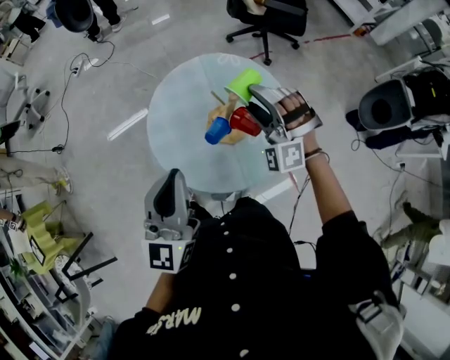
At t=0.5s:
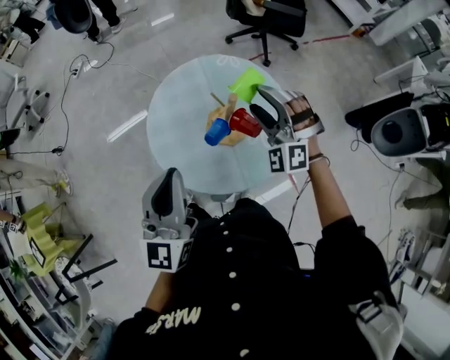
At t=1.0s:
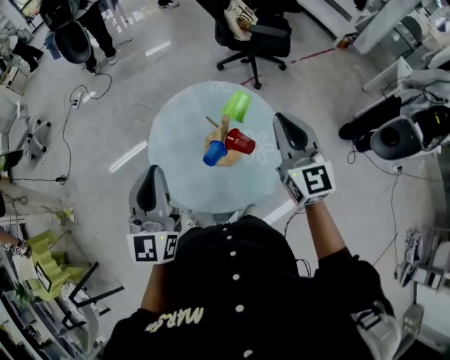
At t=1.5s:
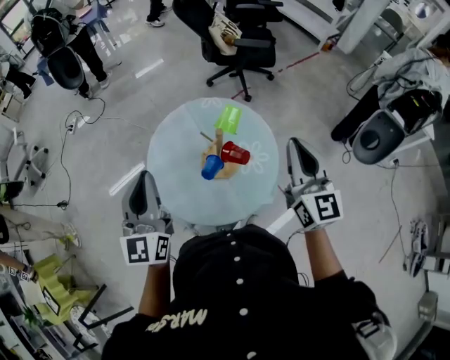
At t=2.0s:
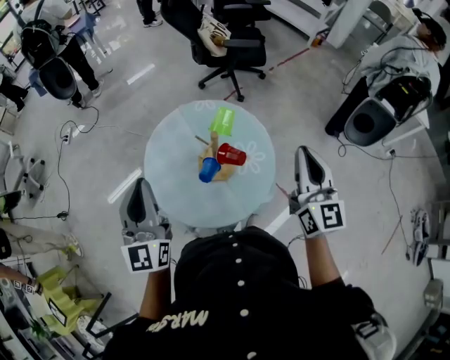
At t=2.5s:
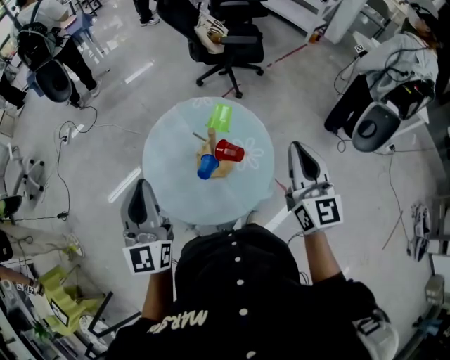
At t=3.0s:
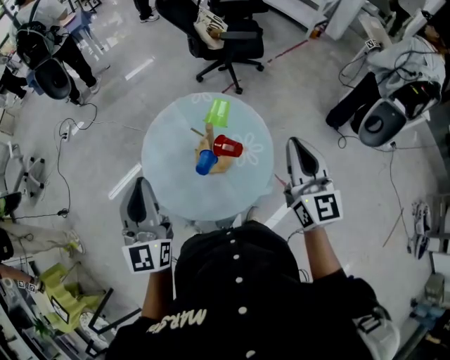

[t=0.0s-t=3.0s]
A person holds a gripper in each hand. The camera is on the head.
t=0.0s to t=1.5s: The right gripper shifts roughly 20 cm upward, to the right and backward, rotates around the line of its fingers by about 80 degrees, clockwise from behind, and closes up, while the left gripper moves forward and to the left, some 10 cm.
t=1.5s to t=3.0s: The grippers move only a little.

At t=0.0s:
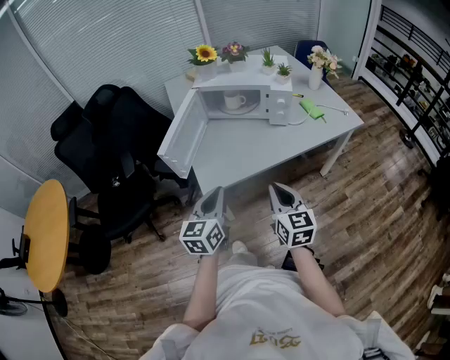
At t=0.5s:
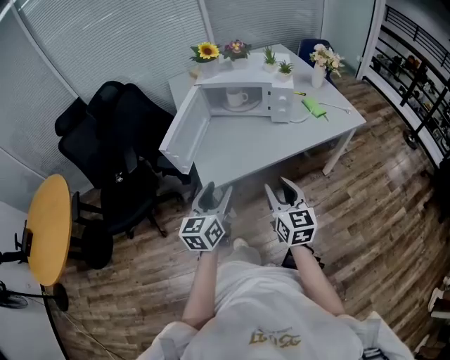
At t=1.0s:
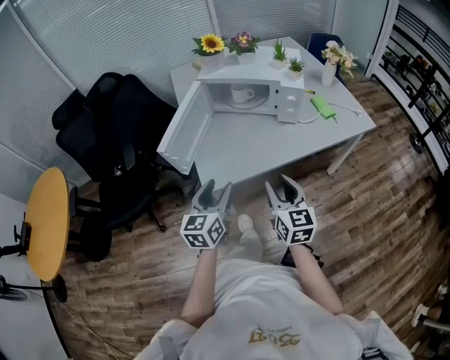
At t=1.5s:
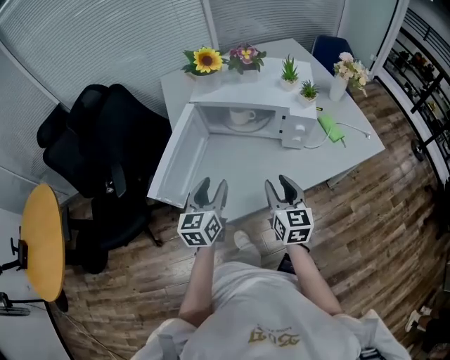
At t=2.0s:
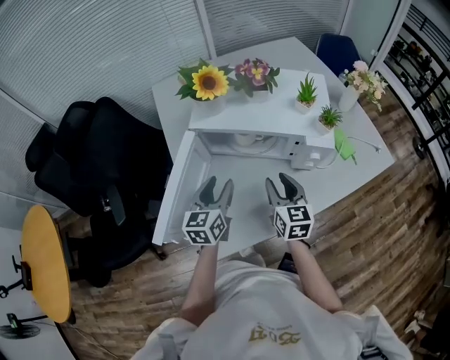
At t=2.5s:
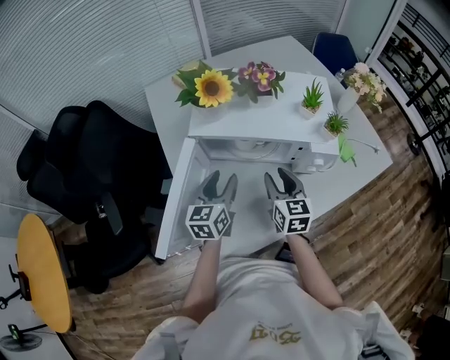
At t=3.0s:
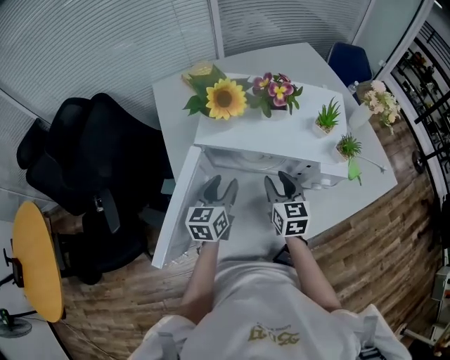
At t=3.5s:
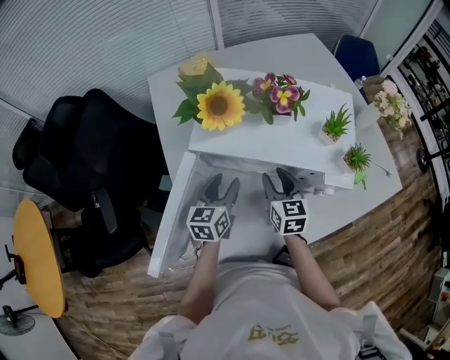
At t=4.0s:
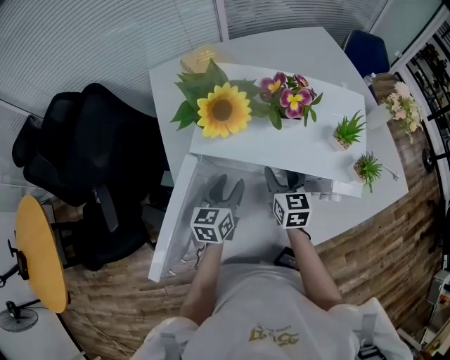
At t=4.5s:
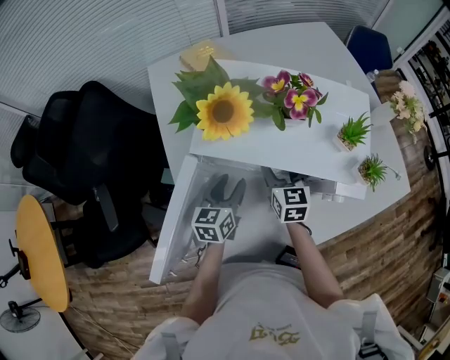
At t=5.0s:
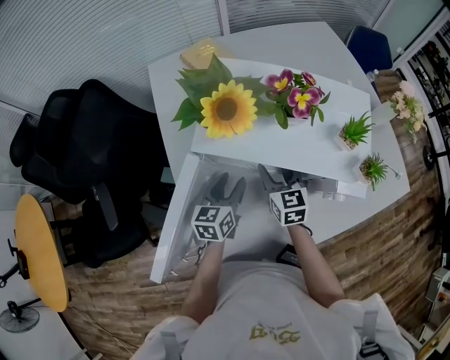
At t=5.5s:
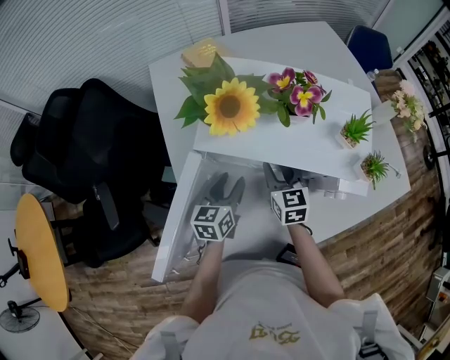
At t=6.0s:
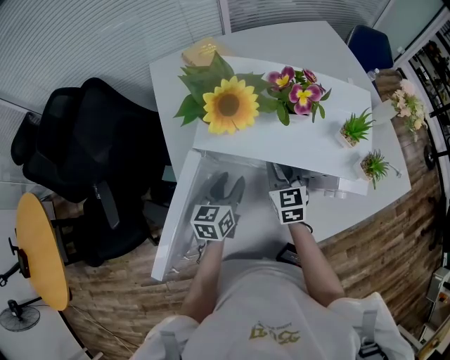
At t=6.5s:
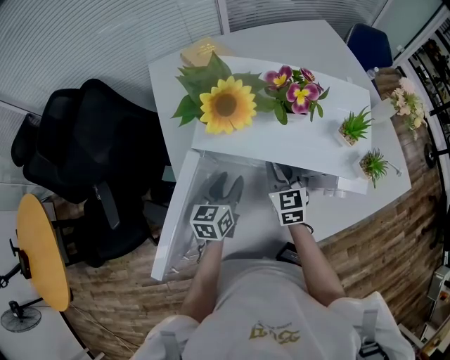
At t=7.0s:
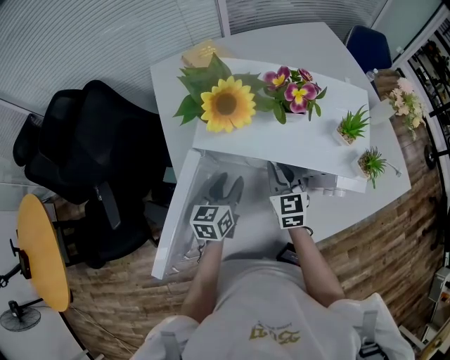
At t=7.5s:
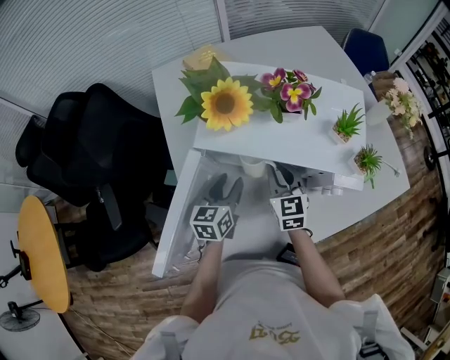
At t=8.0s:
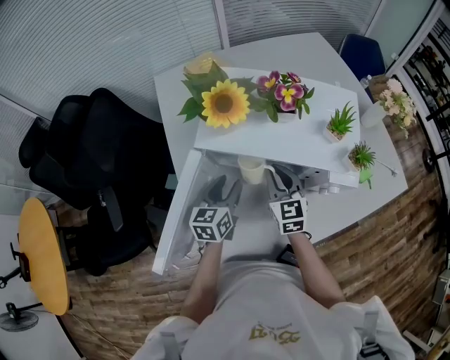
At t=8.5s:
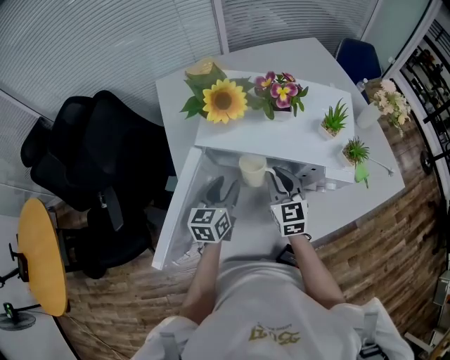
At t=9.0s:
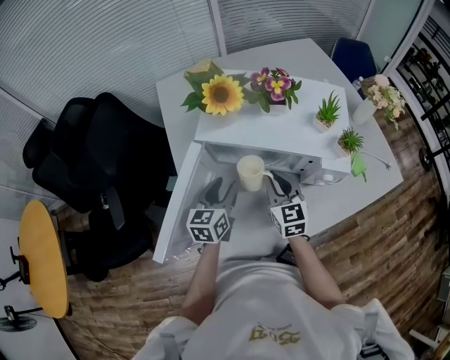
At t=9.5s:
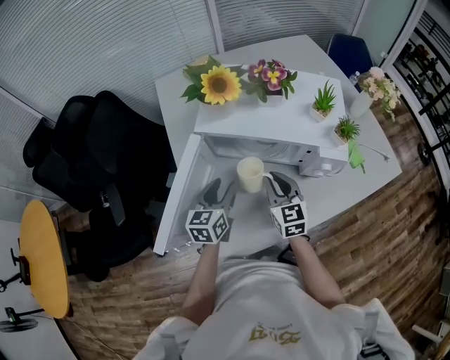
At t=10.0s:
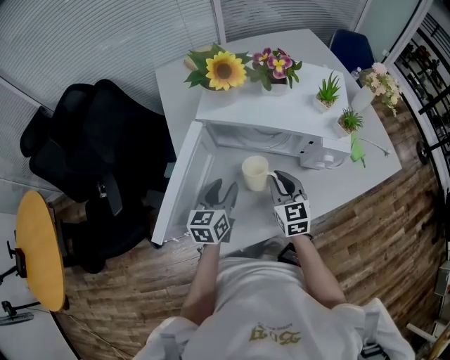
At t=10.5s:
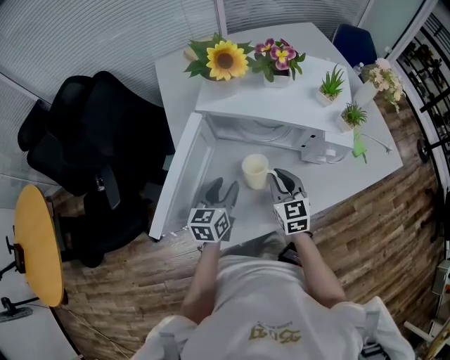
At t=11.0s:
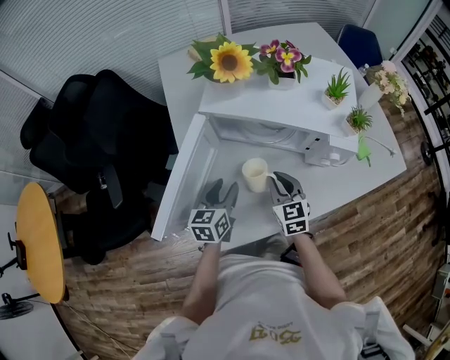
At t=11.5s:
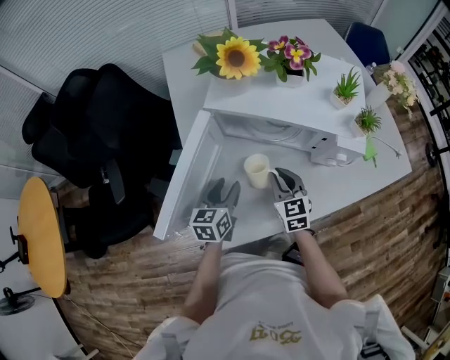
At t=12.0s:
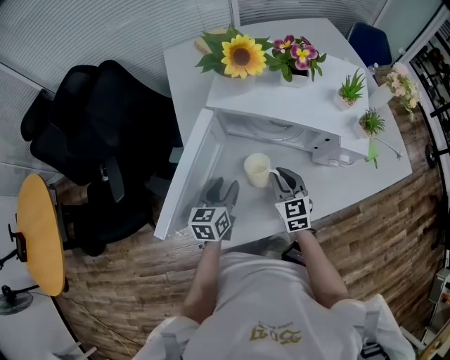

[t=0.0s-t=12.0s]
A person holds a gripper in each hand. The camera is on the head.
t=0.0s to t=2.0s: The two grippers go some 35 cm forward. The right gripper opens up. The left gripper opens its fingers.
t=2.0s to t=4.0s: Both grippers move forward and downward, about 15 cm.
t=4.0s to t=6.0s: The right gripper closes its fingers.
t=6.0s to t=8.0s: The right gripper ends up some 5 cm from where it was.
t=8.0s to t=10.0s: Both grippers travel together backward, approximately 10 cm.
t=10.0s to t=12.0s: The right gripper ends up some 5 cm from where it was. The left gripper ends up some 5 cm from where it was.

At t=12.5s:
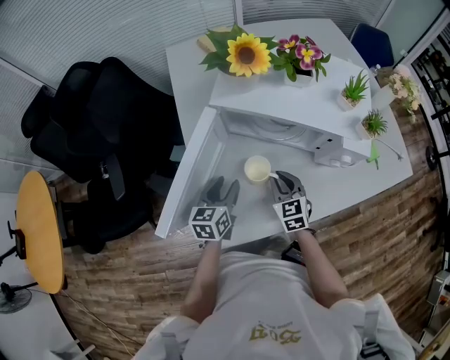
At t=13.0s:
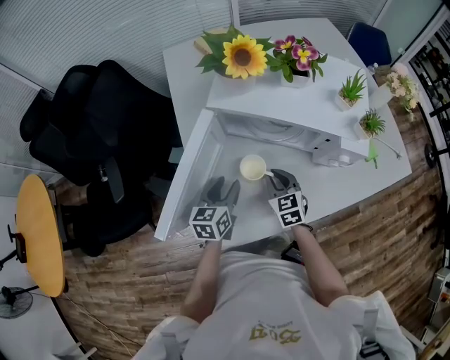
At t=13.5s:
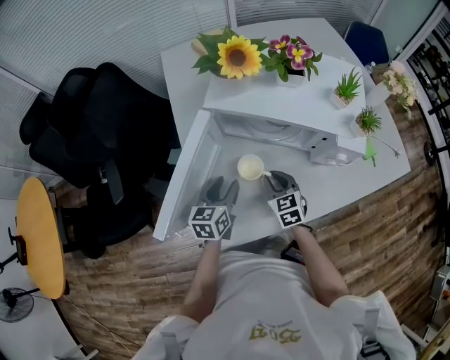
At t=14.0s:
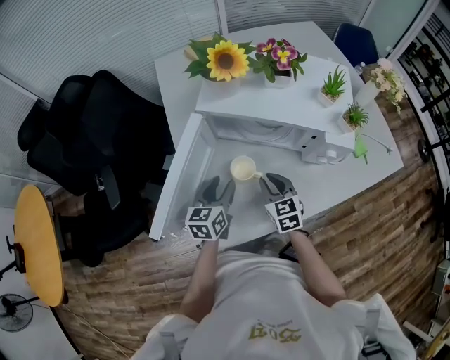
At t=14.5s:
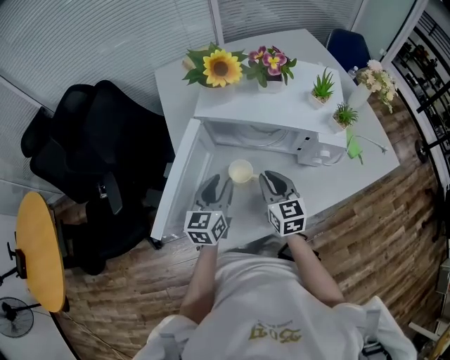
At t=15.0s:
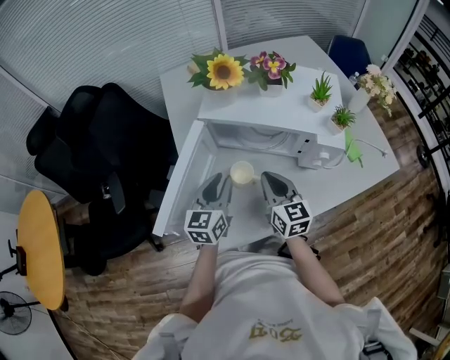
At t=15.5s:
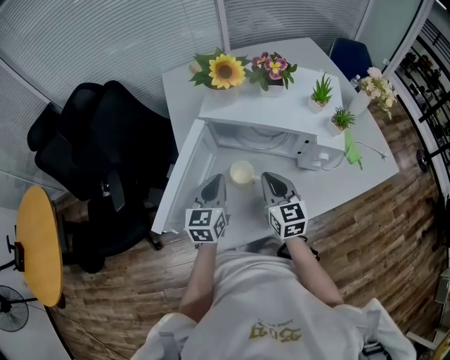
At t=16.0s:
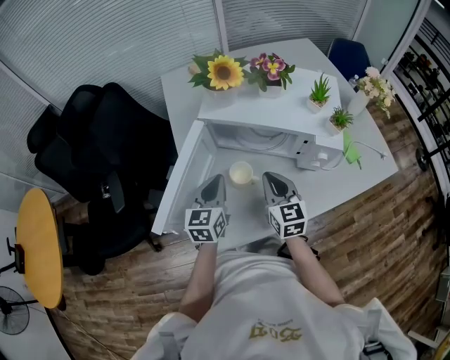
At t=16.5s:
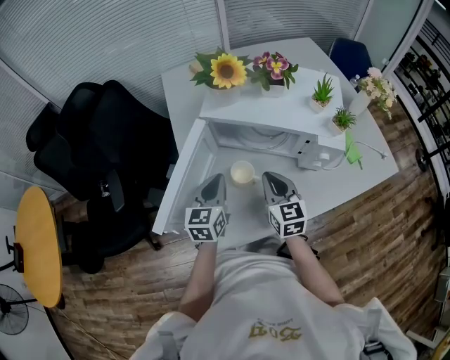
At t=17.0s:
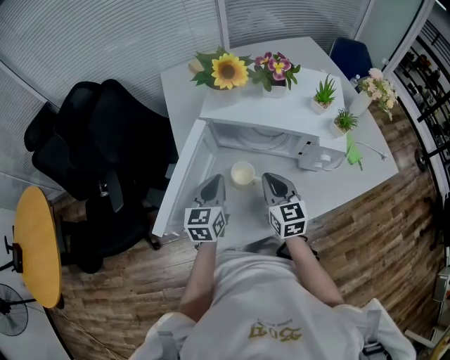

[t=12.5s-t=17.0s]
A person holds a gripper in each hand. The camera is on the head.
t=12.5s to t=14.5s: Both grippers travel together upward, some 10 cm.
t=14.5s to t=17.0s: The left gripper closes its fingers.

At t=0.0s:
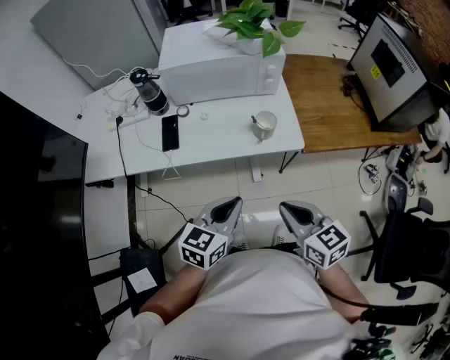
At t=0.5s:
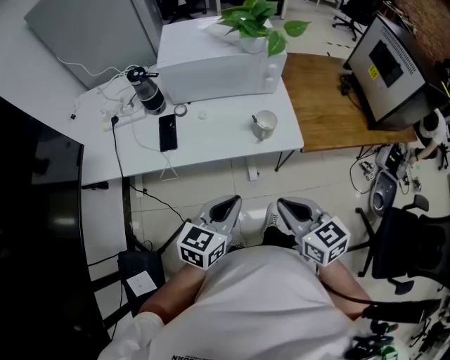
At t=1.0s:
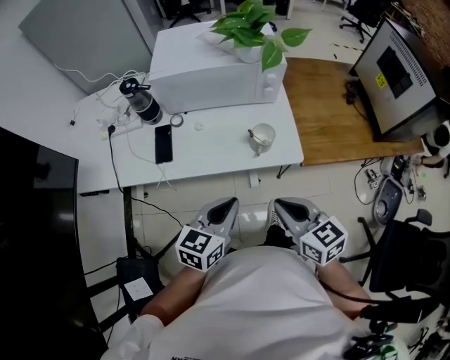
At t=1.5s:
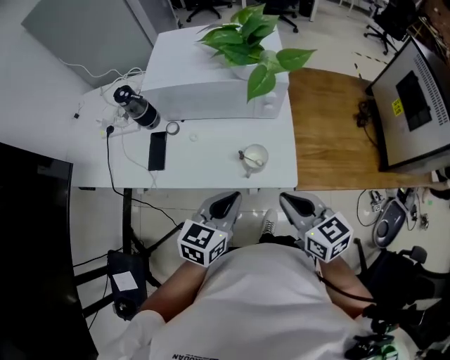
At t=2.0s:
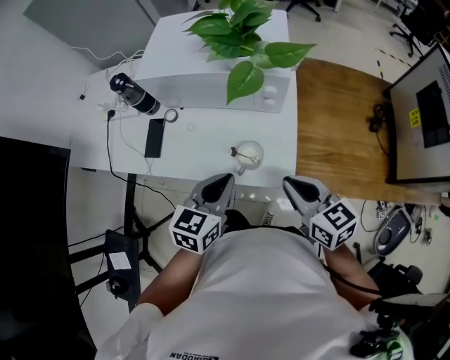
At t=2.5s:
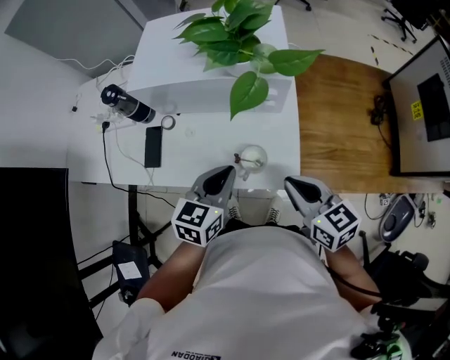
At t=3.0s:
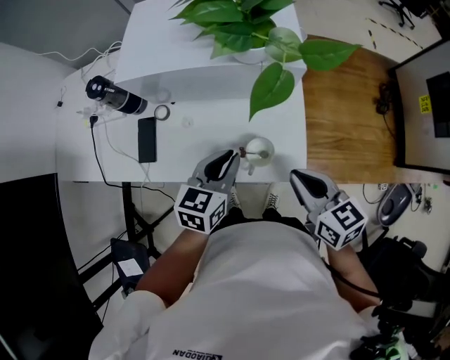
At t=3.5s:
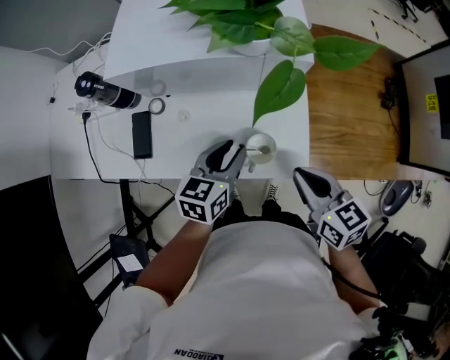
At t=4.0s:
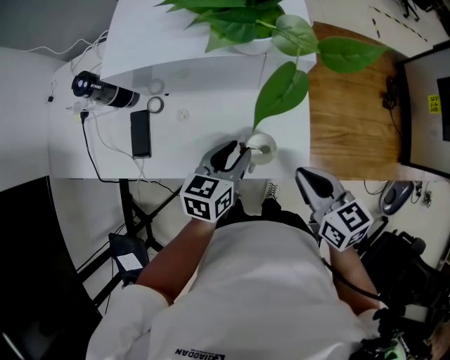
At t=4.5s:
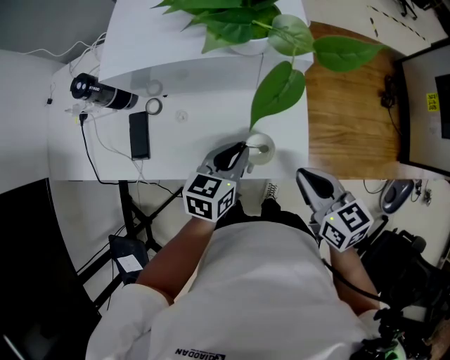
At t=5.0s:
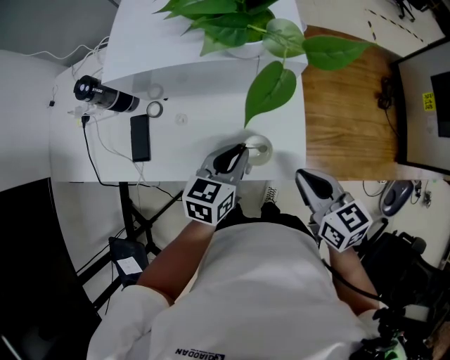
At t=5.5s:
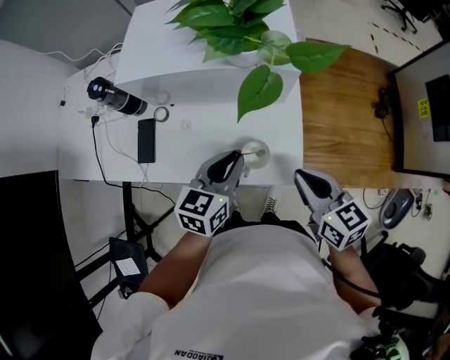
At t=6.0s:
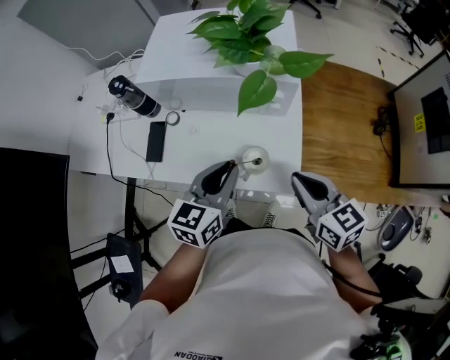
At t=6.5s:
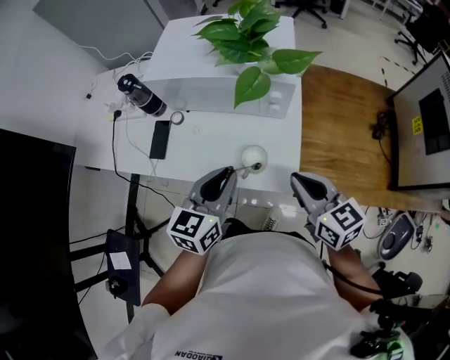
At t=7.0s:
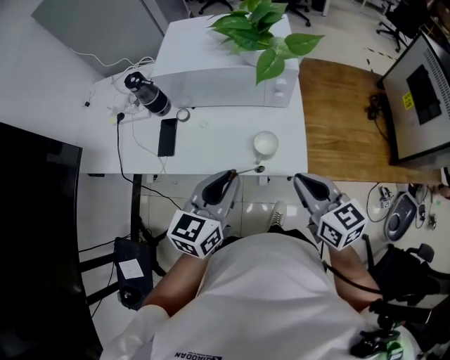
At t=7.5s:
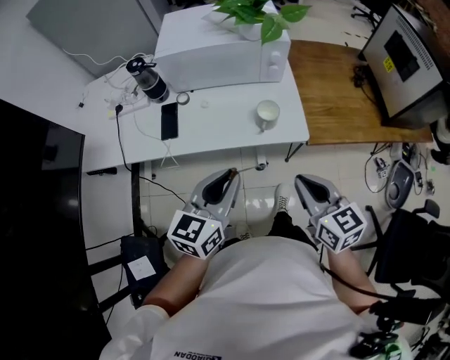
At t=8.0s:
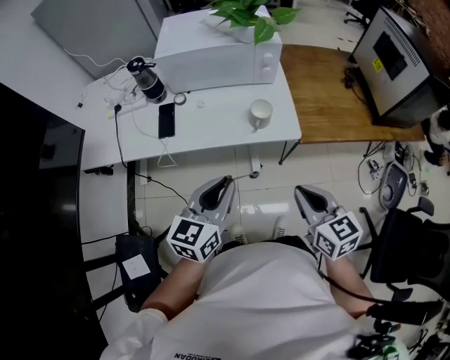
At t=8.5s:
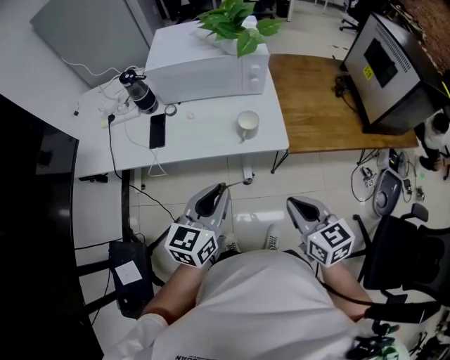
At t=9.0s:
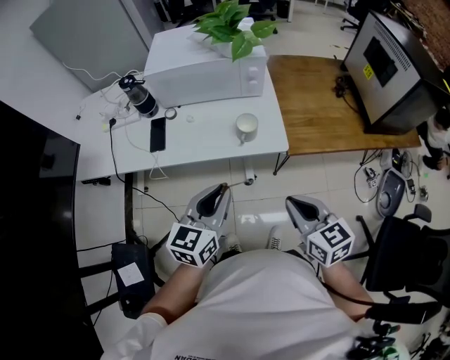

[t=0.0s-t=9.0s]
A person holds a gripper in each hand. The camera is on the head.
t=0.0s to t=2.0s: Both grippers travel together forward and to the right, some 25 cm.
t=2.0s to t=4.5s: The right gripper ends up about 5 cm from where it was. Meanwhile the left gripper goes some 15 cm downward and forward, and opens, then closes once more.
t=4.5s to t=7.0s: The left gripper shifts roughly 20 cm upward and backward, and swivels some 20 degrees; the right gripper goes roughly 10 cm backward and upward.
t=7.0s to t=9.0s: The two grippers go about 15 cm backward.
